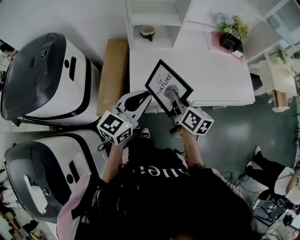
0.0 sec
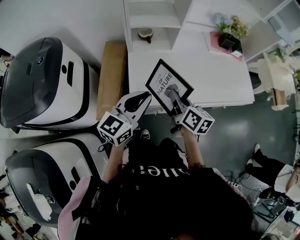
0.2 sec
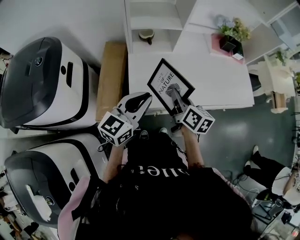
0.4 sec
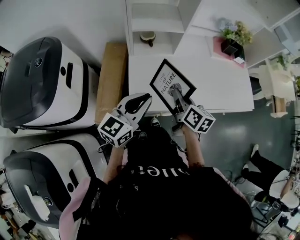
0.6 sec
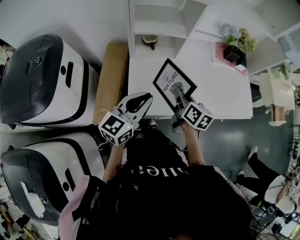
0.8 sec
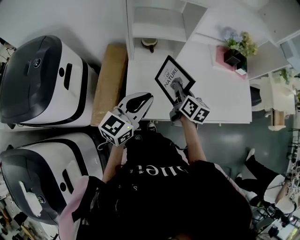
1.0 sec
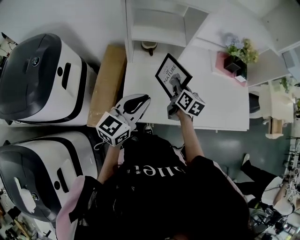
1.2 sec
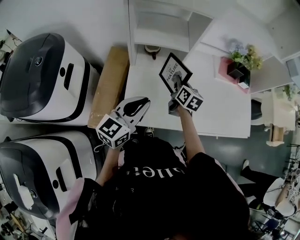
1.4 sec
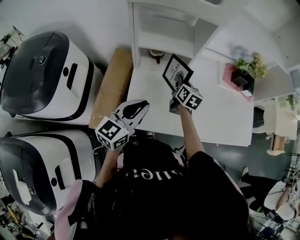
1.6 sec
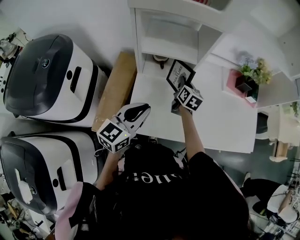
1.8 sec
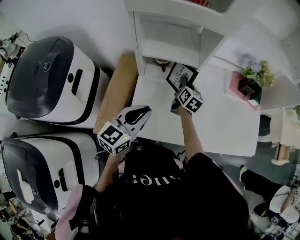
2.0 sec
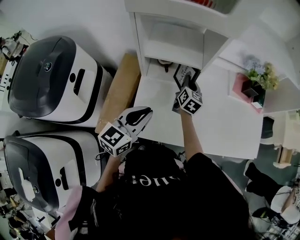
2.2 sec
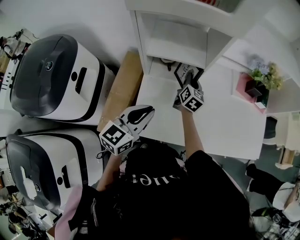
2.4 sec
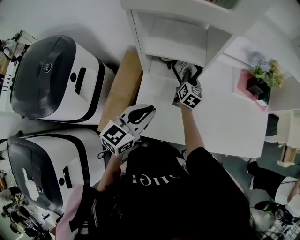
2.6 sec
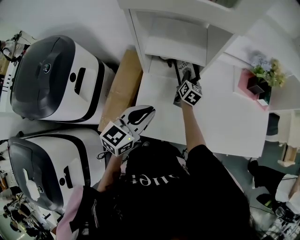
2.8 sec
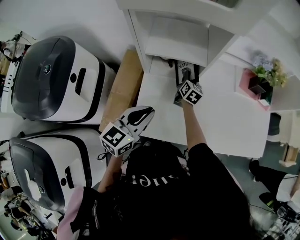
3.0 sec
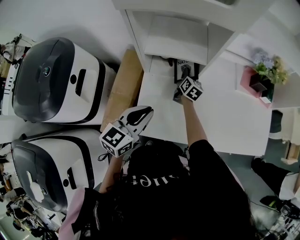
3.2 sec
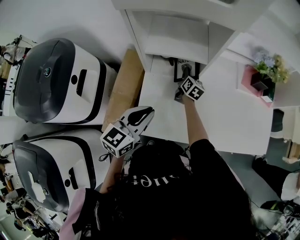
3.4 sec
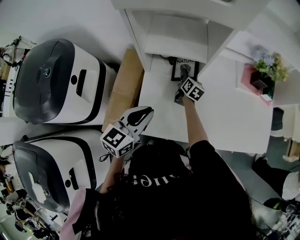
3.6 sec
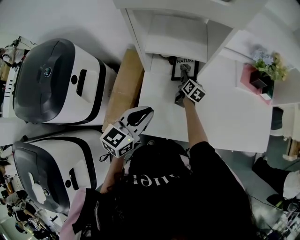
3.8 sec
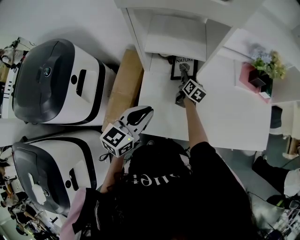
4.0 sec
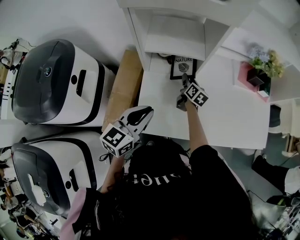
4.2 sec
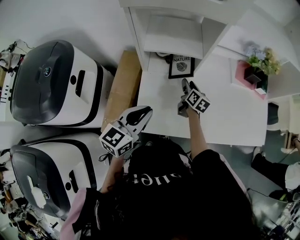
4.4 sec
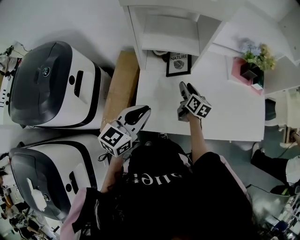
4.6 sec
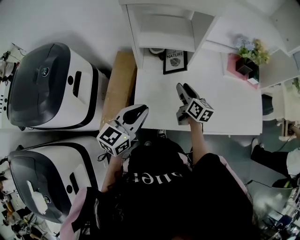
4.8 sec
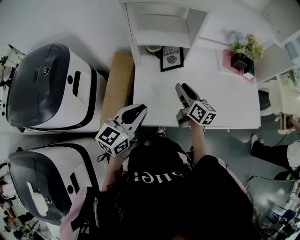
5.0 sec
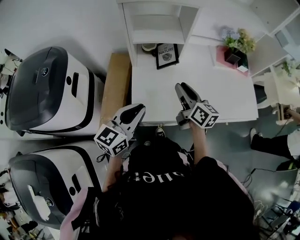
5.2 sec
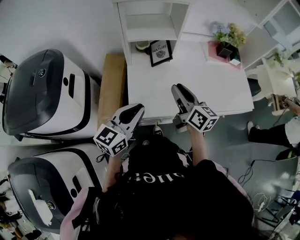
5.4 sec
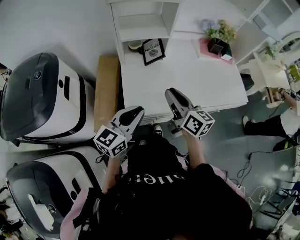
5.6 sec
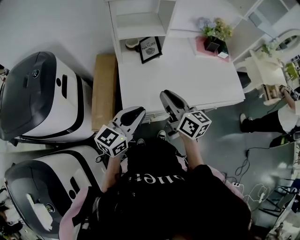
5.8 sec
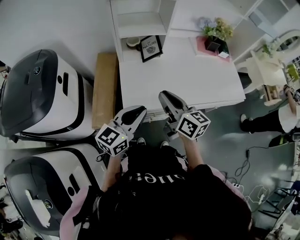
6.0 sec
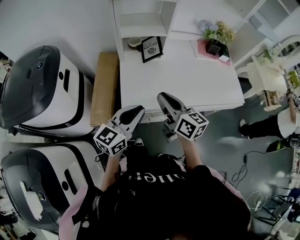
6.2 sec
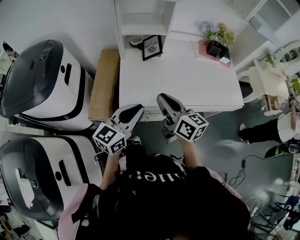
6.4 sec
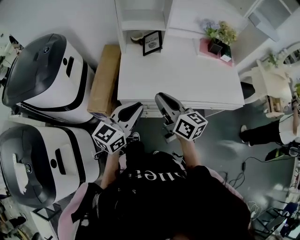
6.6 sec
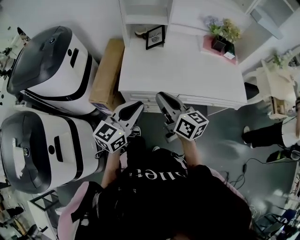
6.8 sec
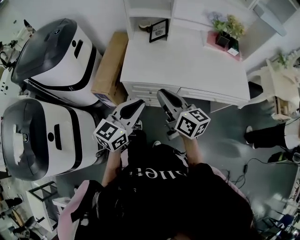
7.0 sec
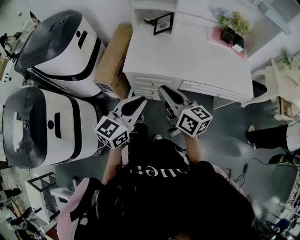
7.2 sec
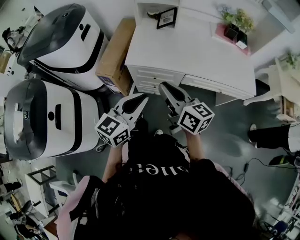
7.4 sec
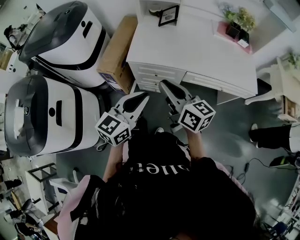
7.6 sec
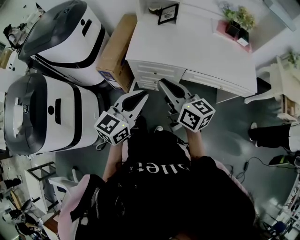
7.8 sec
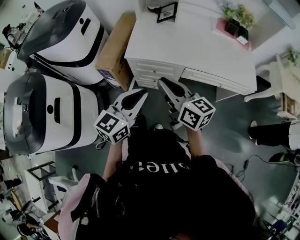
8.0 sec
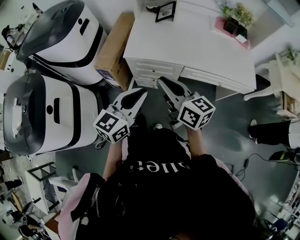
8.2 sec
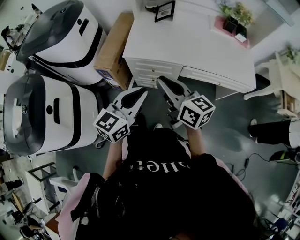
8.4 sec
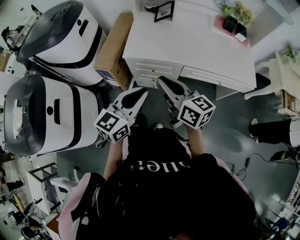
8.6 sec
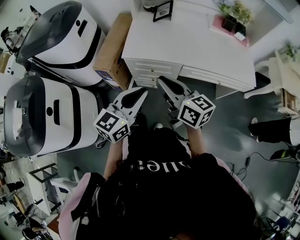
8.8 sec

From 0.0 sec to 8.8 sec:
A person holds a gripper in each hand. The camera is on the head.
From 0.0 sec to 1.4 sec: The left gripper is displaced forward by about 15 cm, while the right gripper is displaced forward by approximately 25 cm.
From 1.4 sec to 3.0 sec: The left gripper shifts by roughly 5 cm. Meanwhile the right gripper heads forward and downward, covering about 15 cm.
From 3.0 sec to 4.4 sec: The right gripper travels backward by roughly 10 cm, and opens.
From 4.4 sec to 5.8 sec: The left gripper shifts some 15 cm backward. Meanwhile the right gripper moves backward and upward, about 40 cm, swivels about 20 degrees, and closes.
From 5.8 sec to 7.4 sec: The right gripper heads backward, covering about 20 cm, and rotates about 20 degrees, while the left gripper shifts approximately 25 cm backward and to the right.
From 7.4 sec to 8.8 sec: The grippers stay close to where they were, moving slightly.

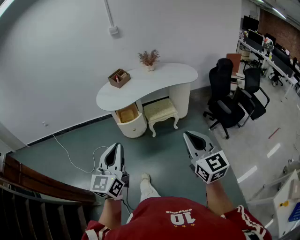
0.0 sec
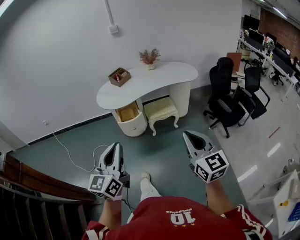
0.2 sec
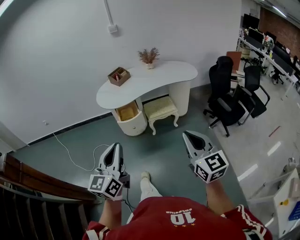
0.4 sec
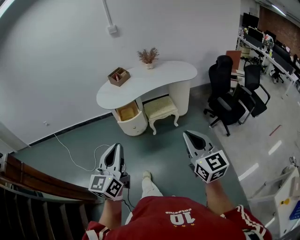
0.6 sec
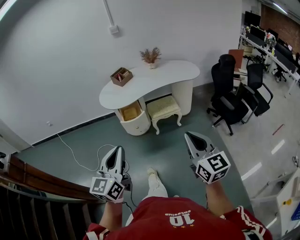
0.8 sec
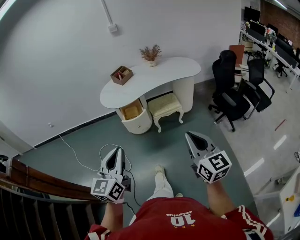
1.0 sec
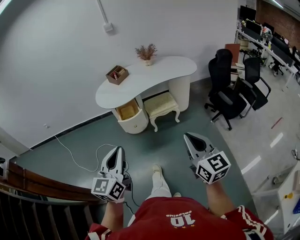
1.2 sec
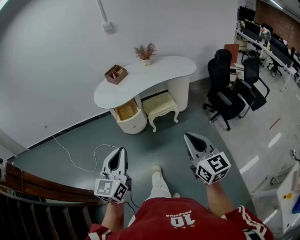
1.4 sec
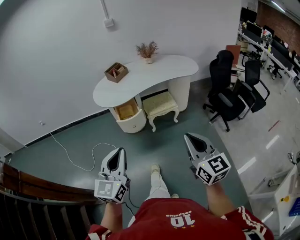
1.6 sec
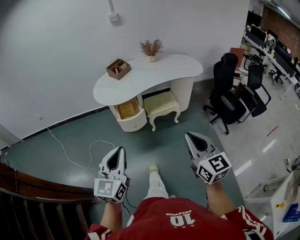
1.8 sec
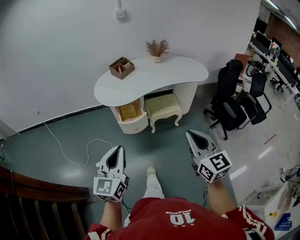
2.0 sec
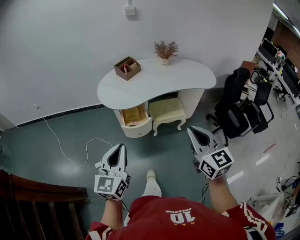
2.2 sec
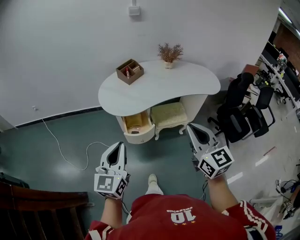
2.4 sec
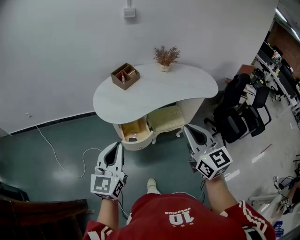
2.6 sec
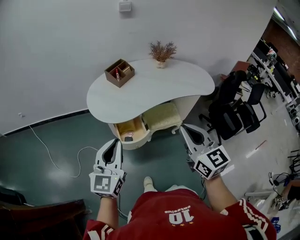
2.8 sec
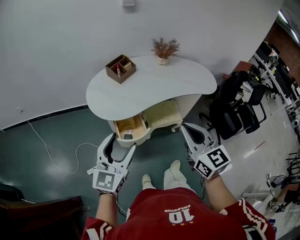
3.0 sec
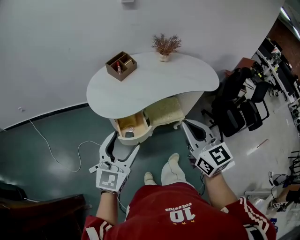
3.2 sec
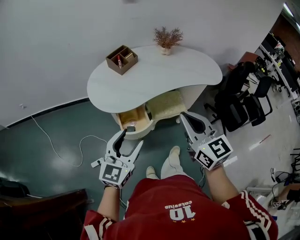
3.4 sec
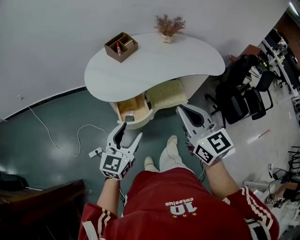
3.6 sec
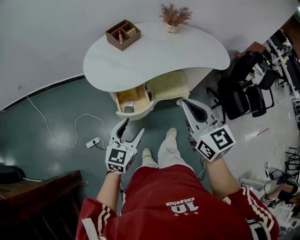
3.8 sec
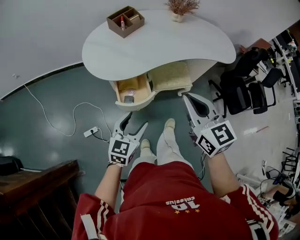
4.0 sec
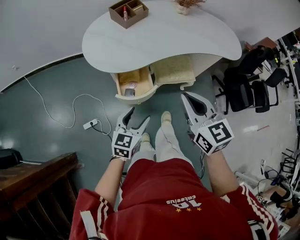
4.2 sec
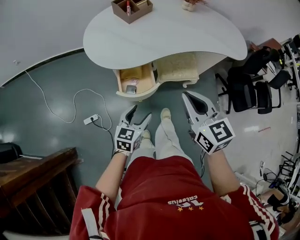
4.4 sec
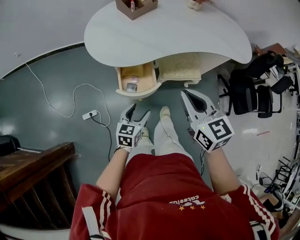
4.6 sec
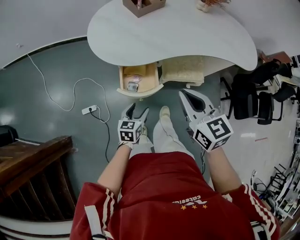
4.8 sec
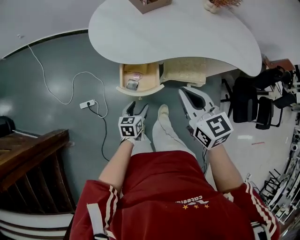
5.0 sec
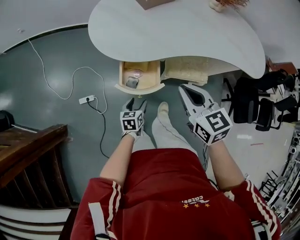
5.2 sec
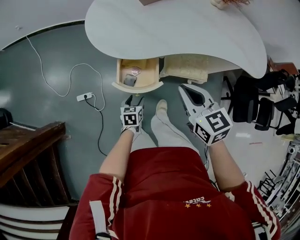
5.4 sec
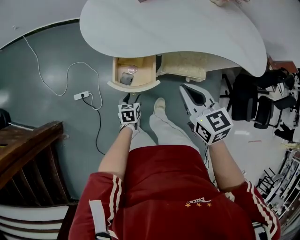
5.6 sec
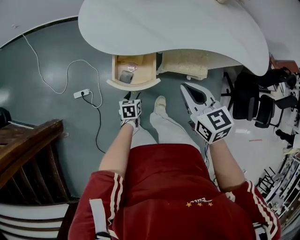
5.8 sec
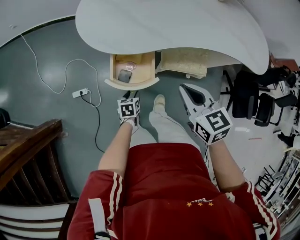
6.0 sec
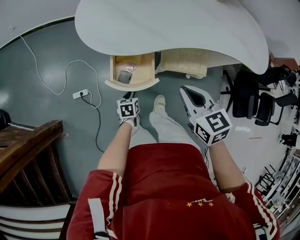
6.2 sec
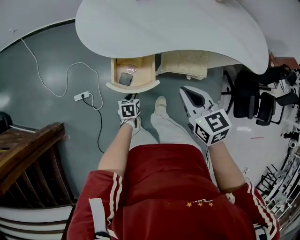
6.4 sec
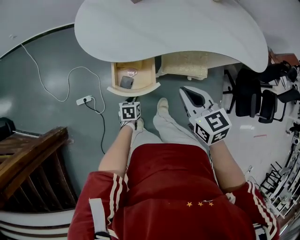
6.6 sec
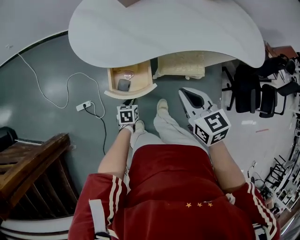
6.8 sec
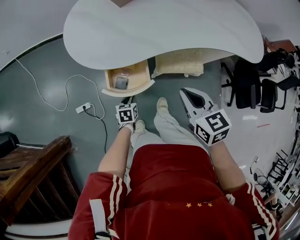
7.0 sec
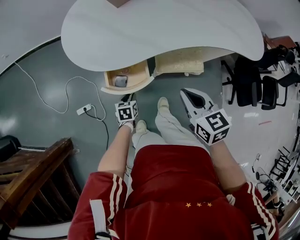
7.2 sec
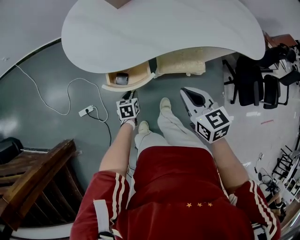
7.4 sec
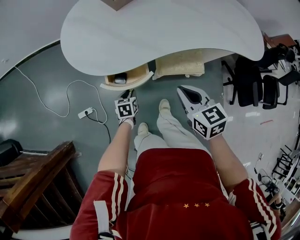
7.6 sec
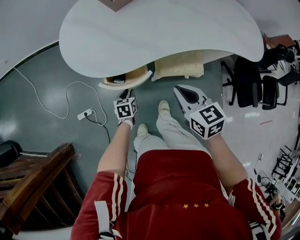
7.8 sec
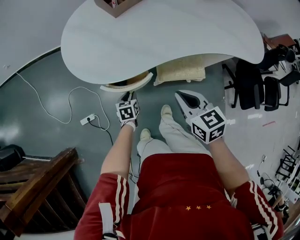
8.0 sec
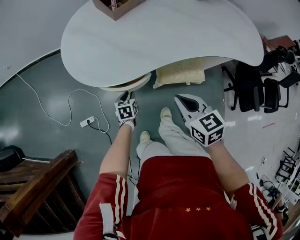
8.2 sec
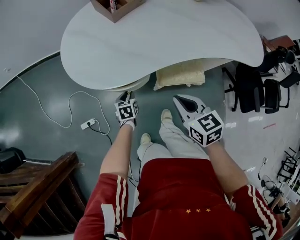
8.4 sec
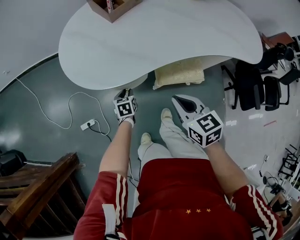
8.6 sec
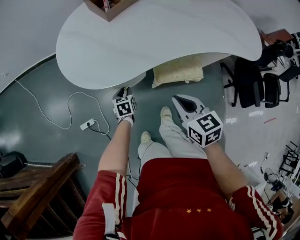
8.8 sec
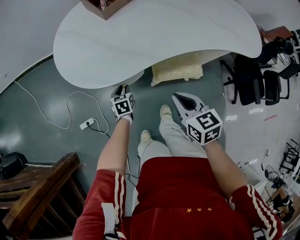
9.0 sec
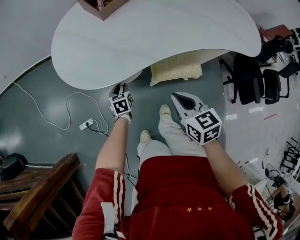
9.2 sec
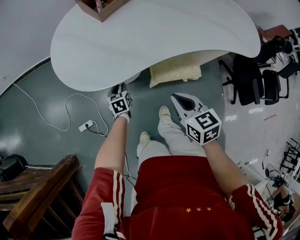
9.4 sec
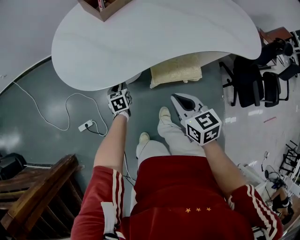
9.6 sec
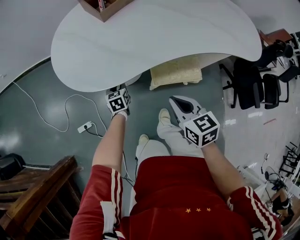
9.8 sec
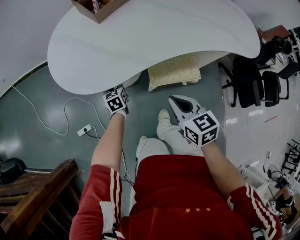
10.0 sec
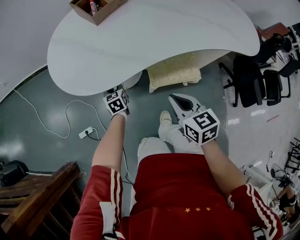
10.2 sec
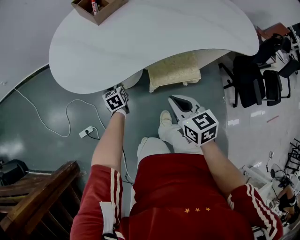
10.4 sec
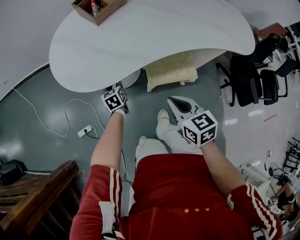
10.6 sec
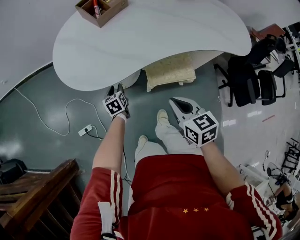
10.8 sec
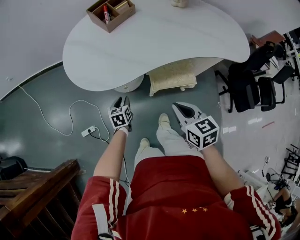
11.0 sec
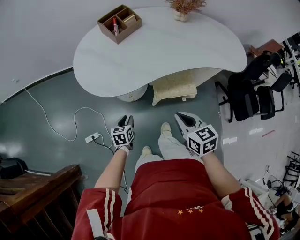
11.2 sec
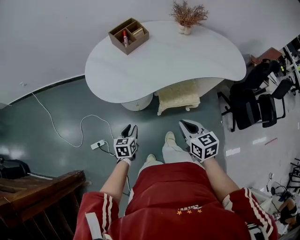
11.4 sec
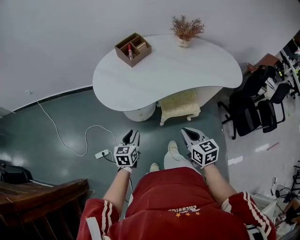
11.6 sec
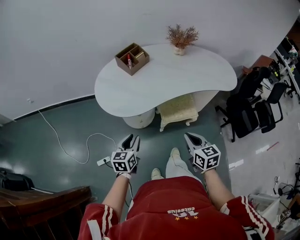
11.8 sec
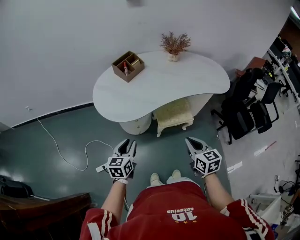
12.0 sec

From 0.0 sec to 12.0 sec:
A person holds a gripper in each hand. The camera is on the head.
From 0.0 sec to 1.6 sec: The grippers stay close to where they were, moving slightly.
From 1.6 sec to 3.0 sec: The grippers both shift forward by some 35 cm. The left gripper opens up.
From 3.0 sec to 4.4 sec: The right gripper shifts roughly 20 cm downward and forward, while the left gripper travels downward by roughly 30 cm, and turns by about 30 degrees.
From 4.4 sec to 6.0 sec: The right gripper travels downward and forward by about 15 cm, and rotates about 20 degrees. Meanwhile the left gripper is displaced downward by about 25 cm, changes its angle by roughly 40 degrees, and closes its fingers.
From 6.0 sec to 7.6 sec: The right gripper moves some 5 cm. The left gripper heads forward, covering roughly 10 cm.
From 7.6 sec to 9.0 sec: The left gripper is displaced forward by approximately 10 cm.
From 9.0 sec to 10.4 sec: The left gripper heads forward, covering about 5 cm.
From 10.4 sec to 12.0 sec: The right gripper travels upward and backward by about 25 cm. The left gripper goes some 40 cm upward and backward, and turns by some 30 degrees.

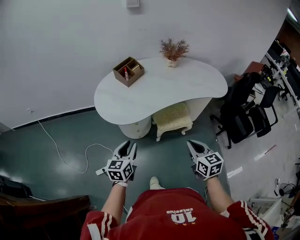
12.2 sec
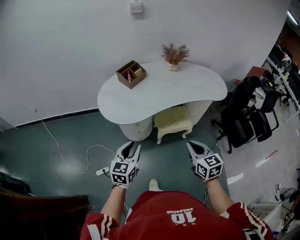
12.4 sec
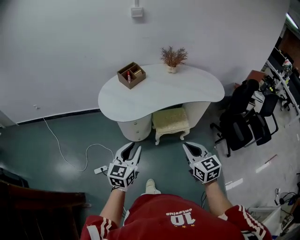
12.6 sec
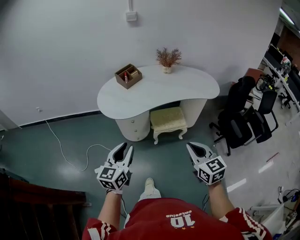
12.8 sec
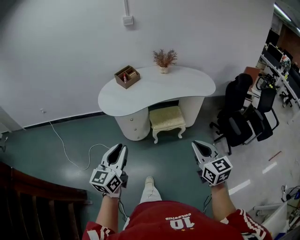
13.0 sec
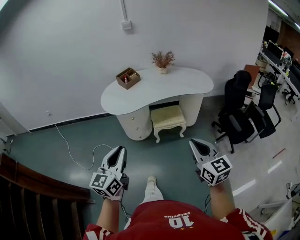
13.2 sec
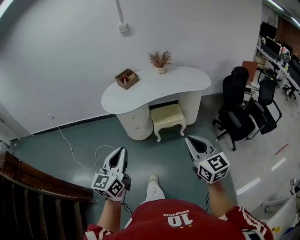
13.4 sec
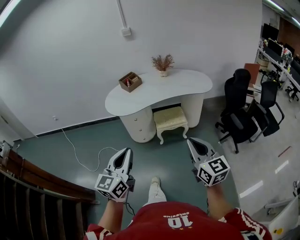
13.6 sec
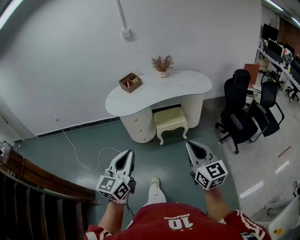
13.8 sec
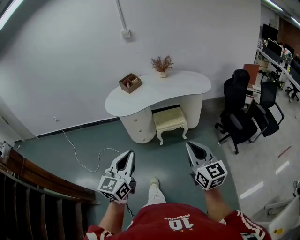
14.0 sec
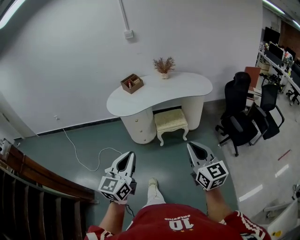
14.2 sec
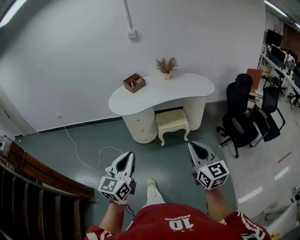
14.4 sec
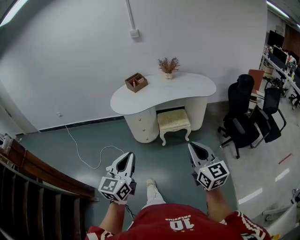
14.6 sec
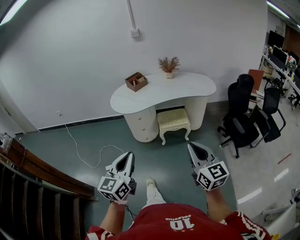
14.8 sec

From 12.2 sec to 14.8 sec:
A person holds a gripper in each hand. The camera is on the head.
From 12.2 sec to 13.4 sec: The left gripper shifts roughly 40 cm backward and upward, turns by approximately 20 degrees, and closes up. The right gripper heads backward, upward and to the right, covering some 35 cm, and turns by roughly 30 degrees.
From 13.4 sec to 14.8 sec: The two grippers go roughly 5 cm backward.
